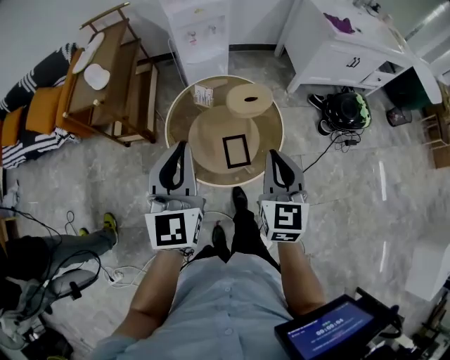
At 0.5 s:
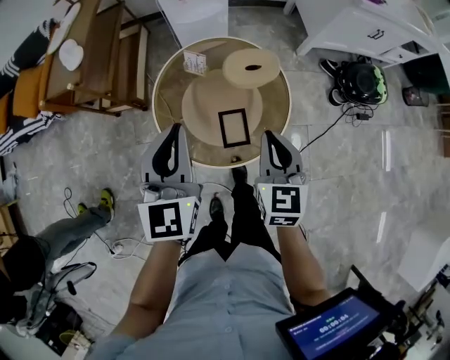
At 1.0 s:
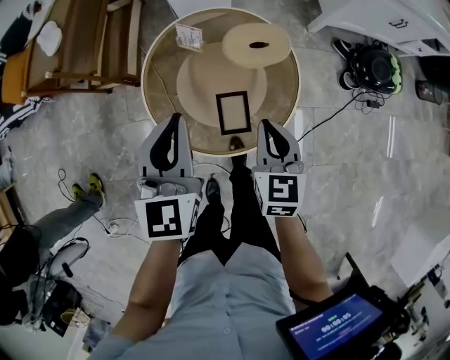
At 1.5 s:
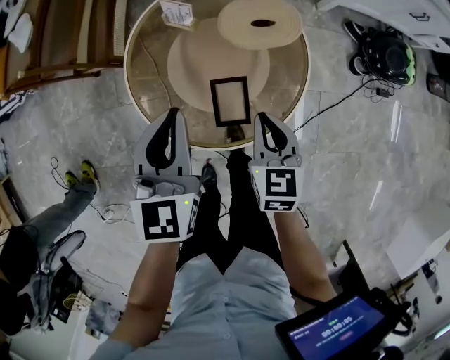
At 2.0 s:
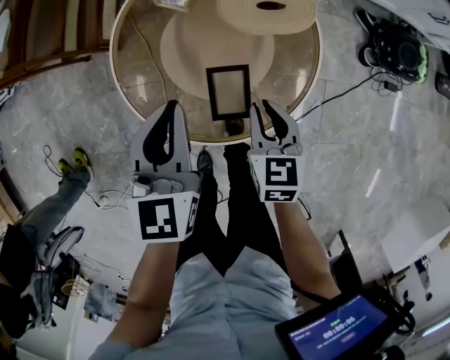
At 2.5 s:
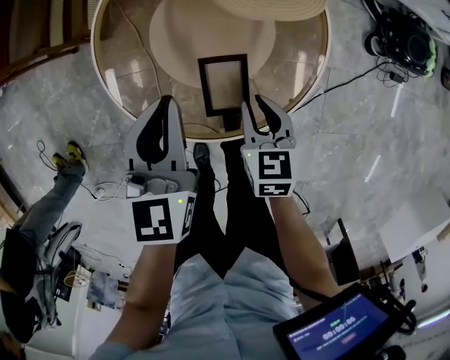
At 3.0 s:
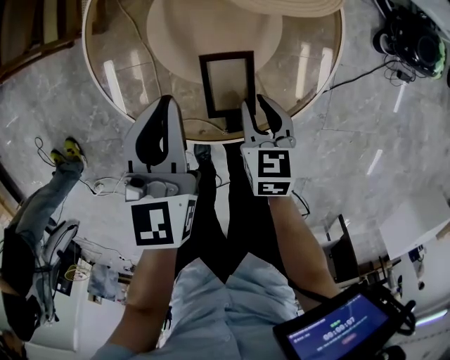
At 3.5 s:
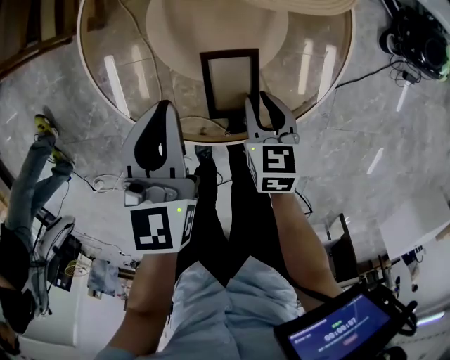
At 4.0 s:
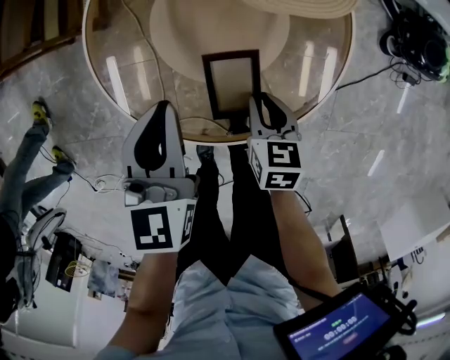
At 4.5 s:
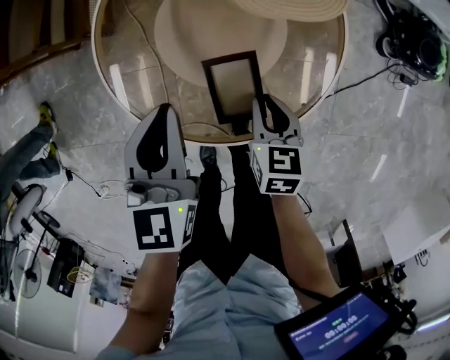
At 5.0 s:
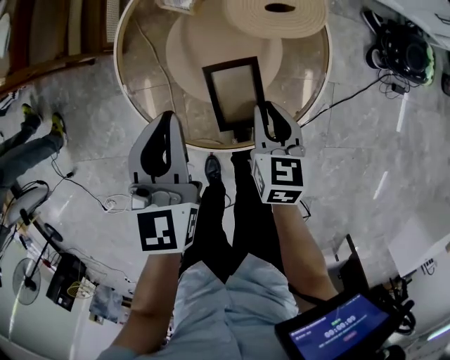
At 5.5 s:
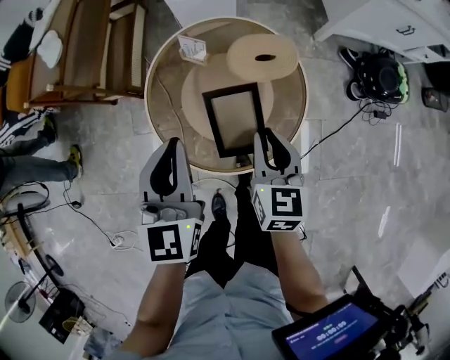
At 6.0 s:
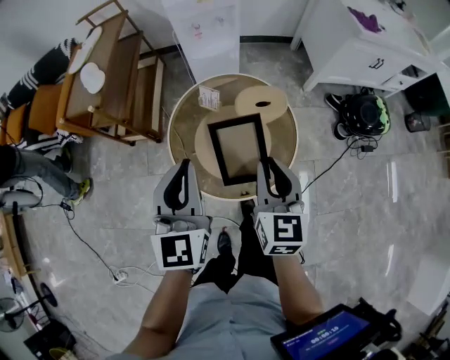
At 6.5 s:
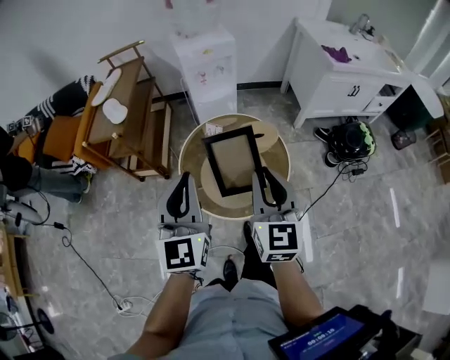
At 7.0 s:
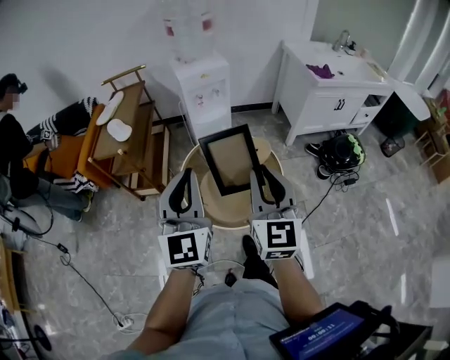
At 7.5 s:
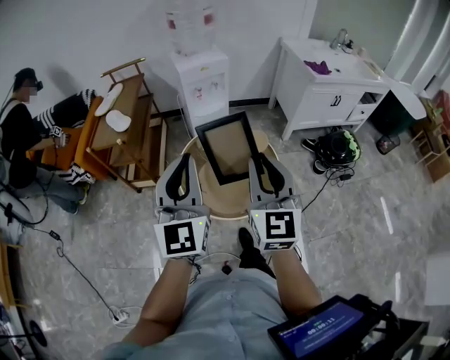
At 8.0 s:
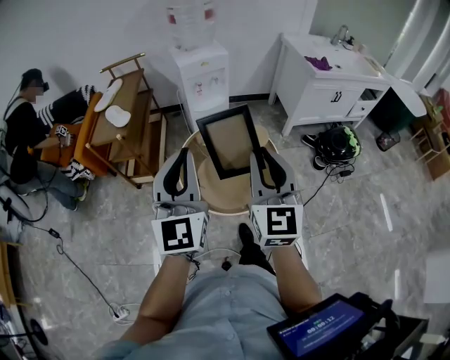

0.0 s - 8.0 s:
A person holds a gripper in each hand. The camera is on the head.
0.0 s - 2.0 s: The left gripper moves downward and forward, some 35 cm, and swivels roughly 30 degrees. The right gripper goes some 35 cm downward, and changes its angle by about 30 degrees.
2.0 s - 4.0 s: Both grippers move downward, approximately 10 cm.
4.0 s - 6.0 s: The two grippers go roughly 40 cm upward. The right gripper tilts its fingers about 30 degrees upward, while the left gripper rotates about 30 degrees.
6.0 s - 8.0 s: The two grippers go about 25 cm upward and backward. The right gripper changes its angle by about 30 degrees, while the left gripper swivels approximately 20 degrees.

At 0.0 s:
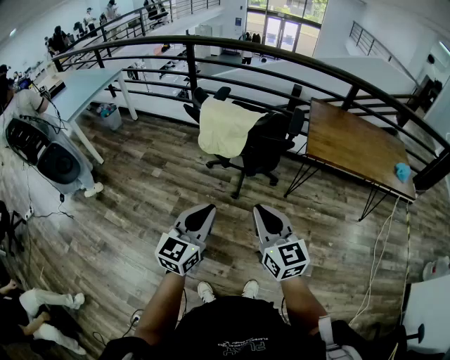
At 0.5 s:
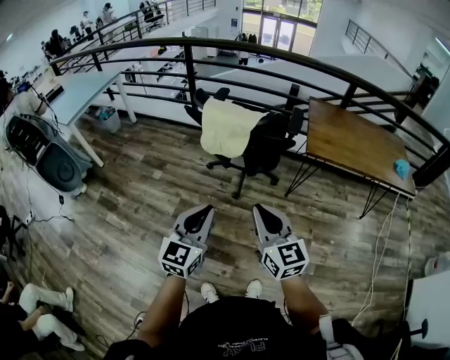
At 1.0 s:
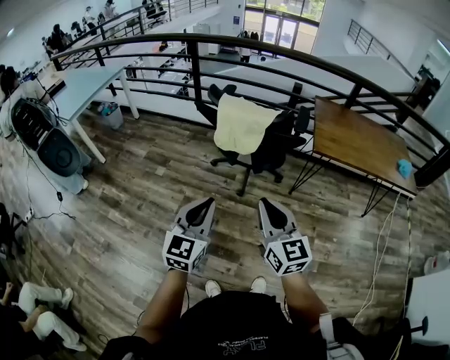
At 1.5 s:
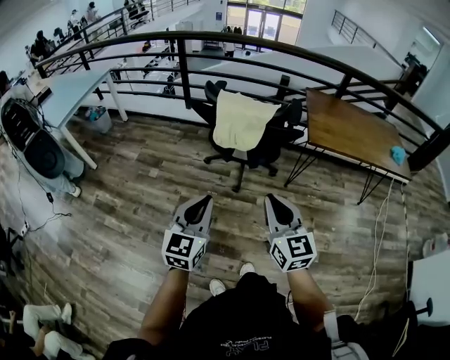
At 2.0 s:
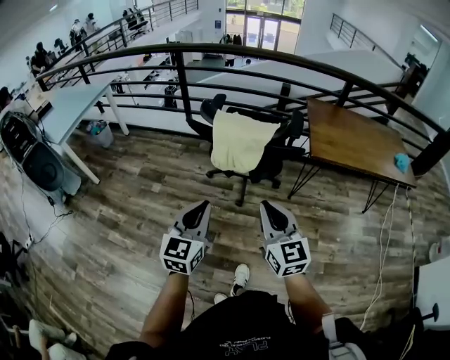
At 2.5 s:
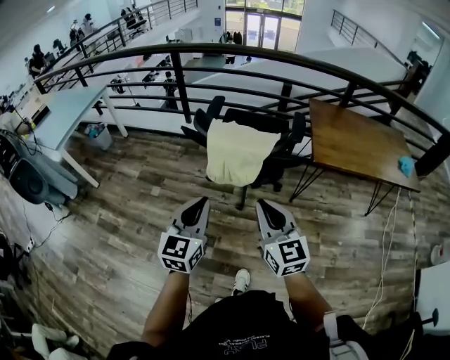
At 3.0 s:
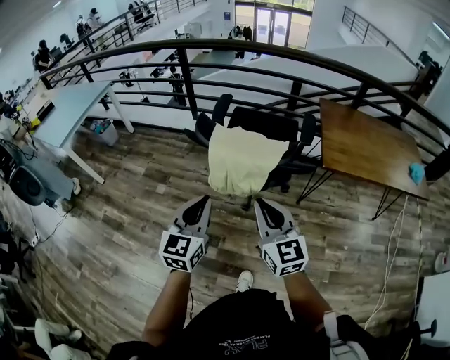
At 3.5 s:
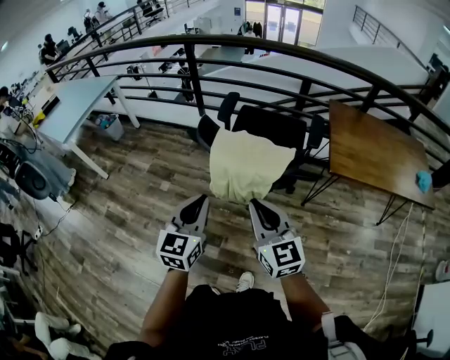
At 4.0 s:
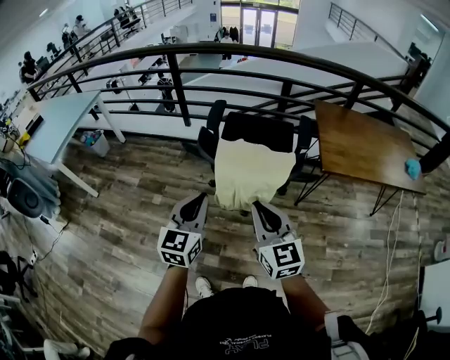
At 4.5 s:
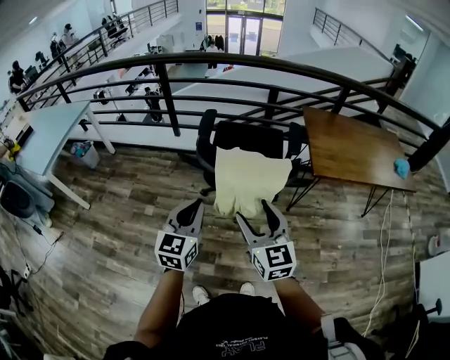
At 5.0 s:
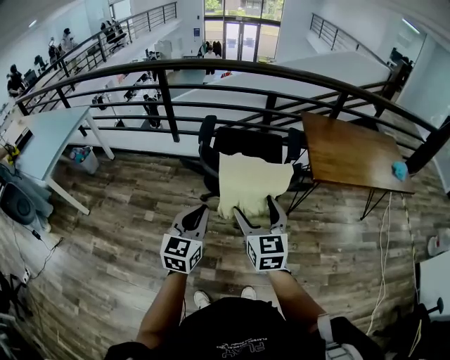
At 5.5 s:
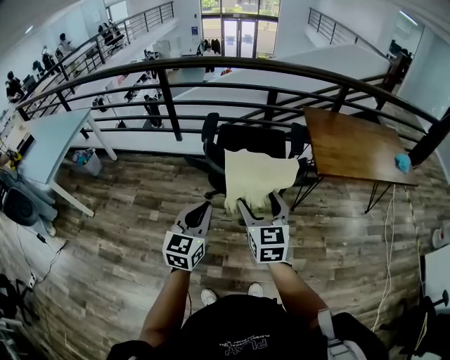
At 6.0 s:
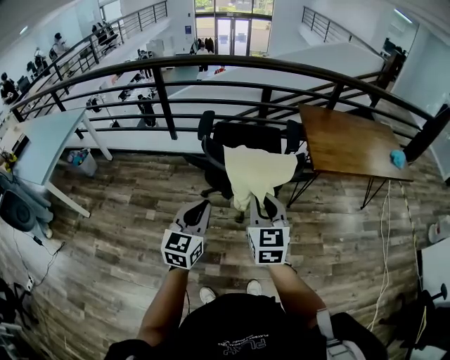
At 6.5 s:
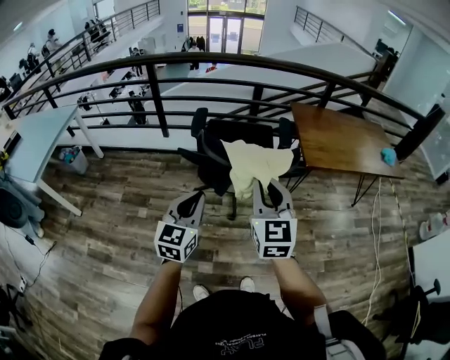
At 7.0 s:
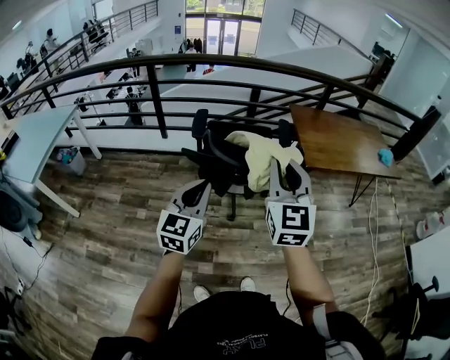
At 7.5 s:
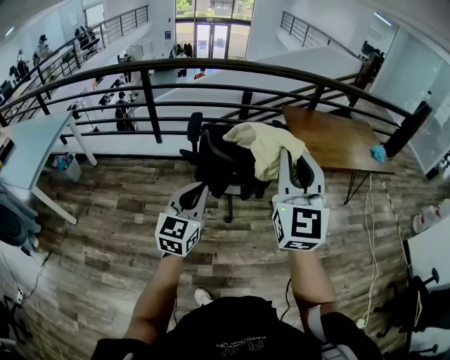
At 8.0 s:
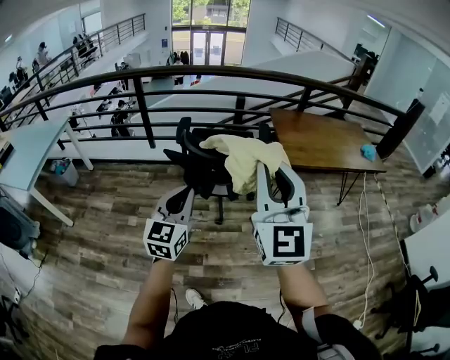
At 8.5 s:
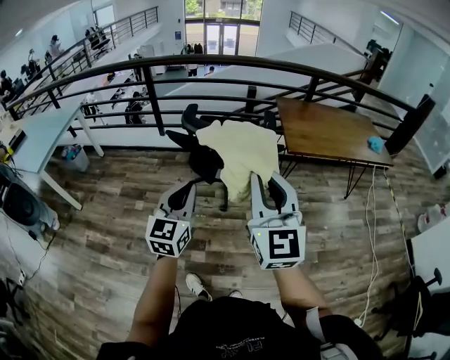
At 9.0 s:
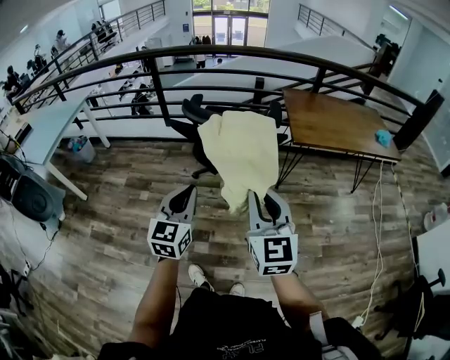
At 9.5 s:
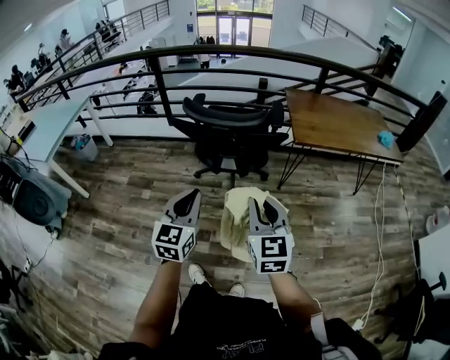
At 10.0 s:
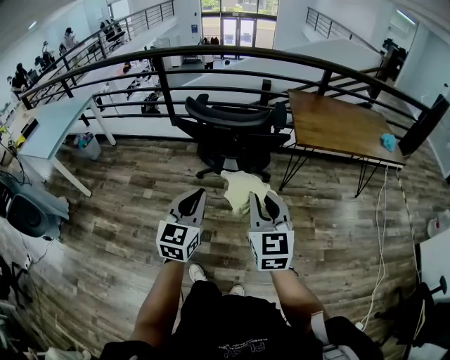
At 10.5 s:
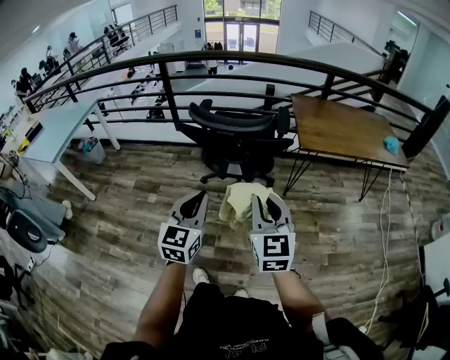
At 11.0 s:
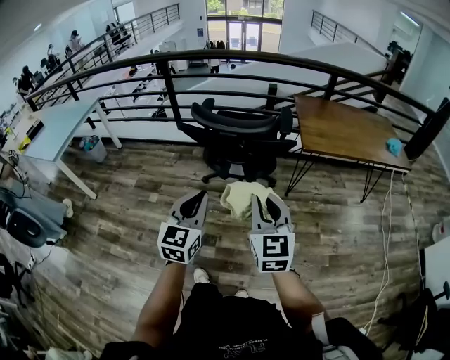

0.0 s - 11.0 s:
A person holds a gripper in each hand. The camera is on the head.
0.0 s - 2.0 s: The grippers both shift to the left and forward by roughly 10 cm.
2.0 s - 3.5 s: The two grippers go some 15 cm forward.
3.5 s - 5.5 s: The right gripper travels forward by some 5 cm, turns by roughly 30 degrees, and opens. The left gripper ends up some 5 cm from where it was.
5.5 s - 7.5 s: The right gripper goes approximately 20 cm upward, changes its angle by approximately 30 degrees, and closes up; the left gripper is displaced upward by approximately 5 cm.
7.5 s - 9.0 s: The left gripper heads backward and to the right, covering roughly 15 cm, while the right gripper travels backward, downward and to the right by some 25 cm, and rotates roughly 20 degrees.
9.0 s - 11.0 s: The grippers make only small movements.

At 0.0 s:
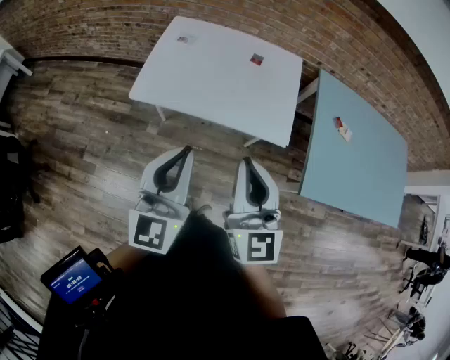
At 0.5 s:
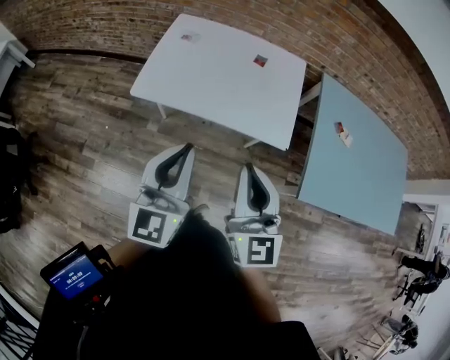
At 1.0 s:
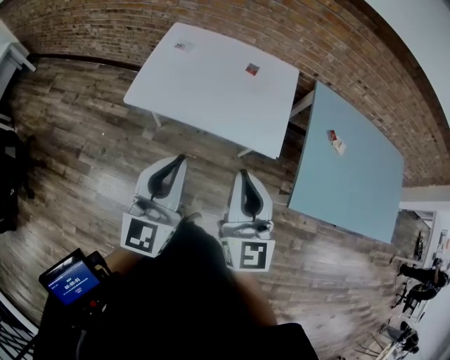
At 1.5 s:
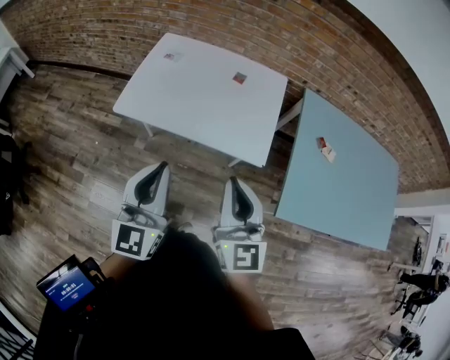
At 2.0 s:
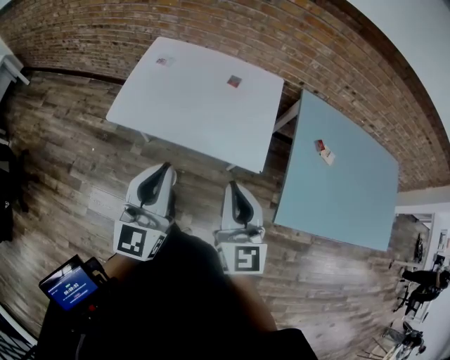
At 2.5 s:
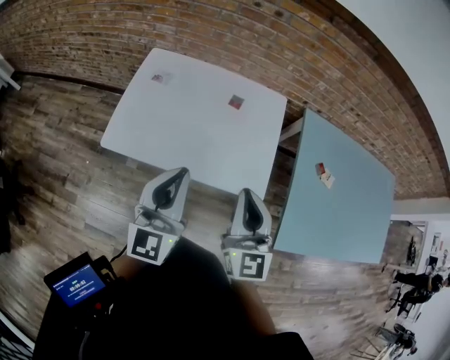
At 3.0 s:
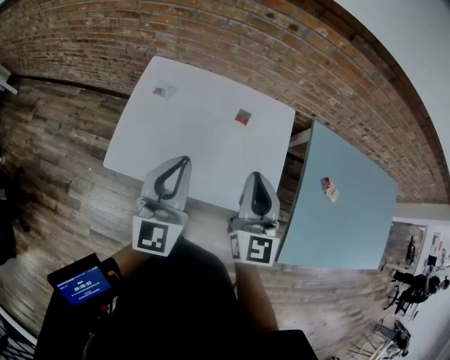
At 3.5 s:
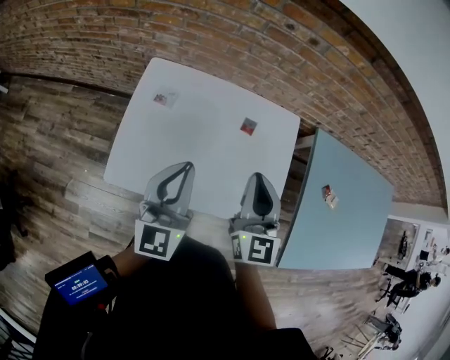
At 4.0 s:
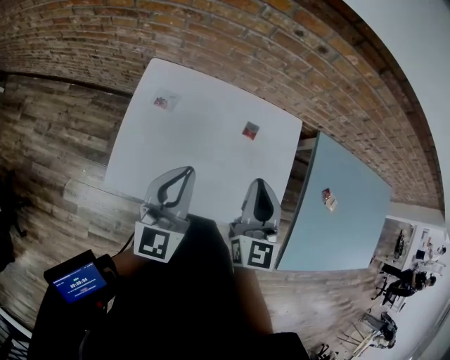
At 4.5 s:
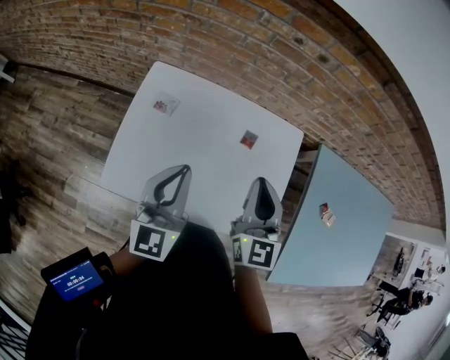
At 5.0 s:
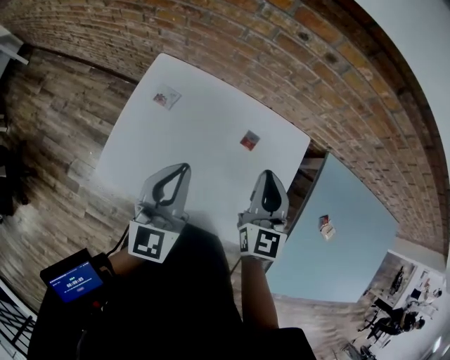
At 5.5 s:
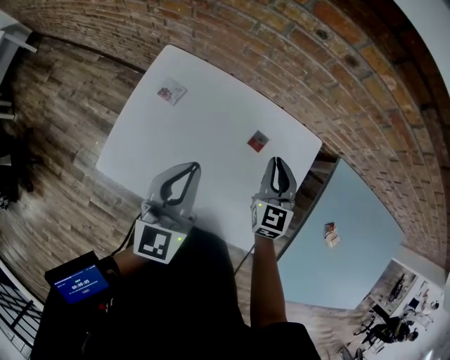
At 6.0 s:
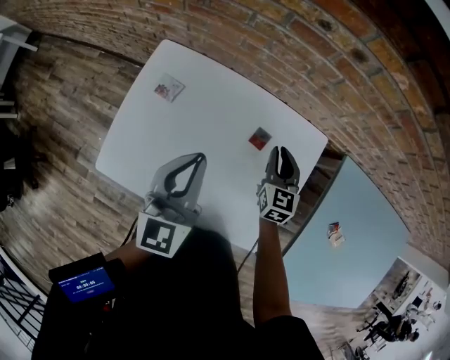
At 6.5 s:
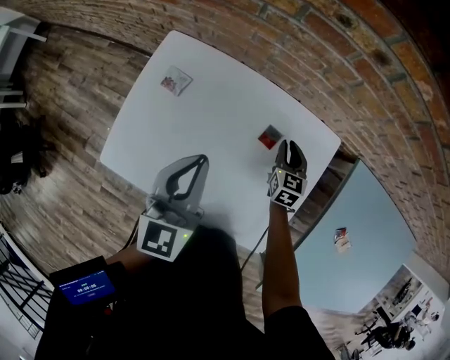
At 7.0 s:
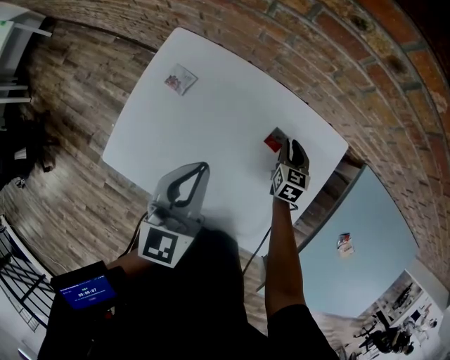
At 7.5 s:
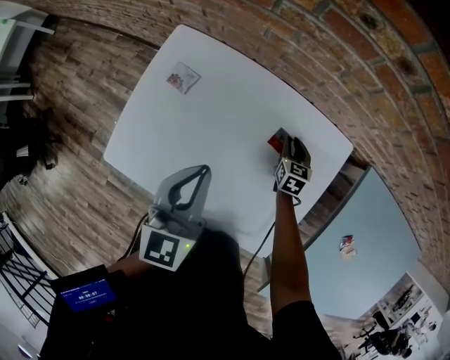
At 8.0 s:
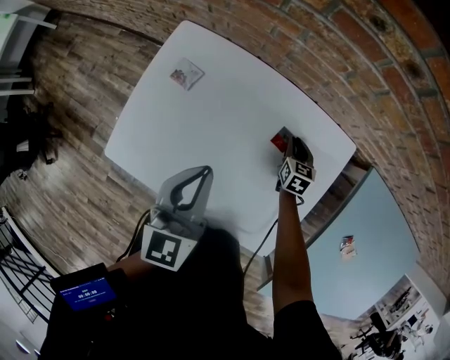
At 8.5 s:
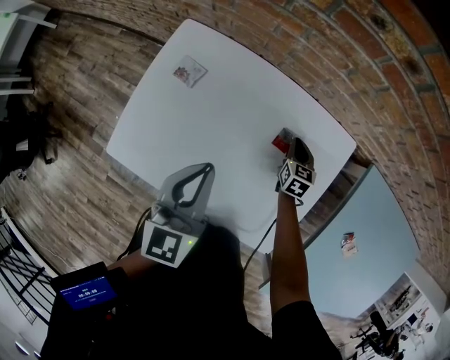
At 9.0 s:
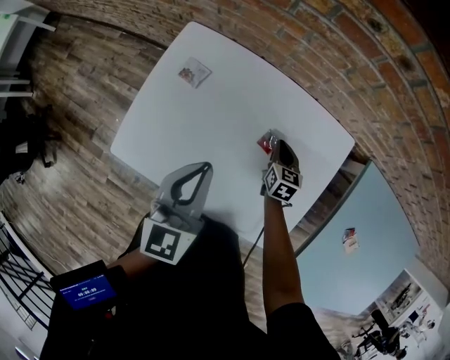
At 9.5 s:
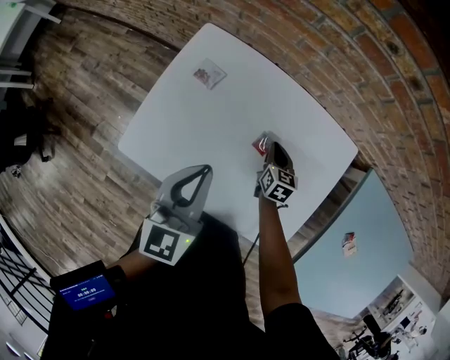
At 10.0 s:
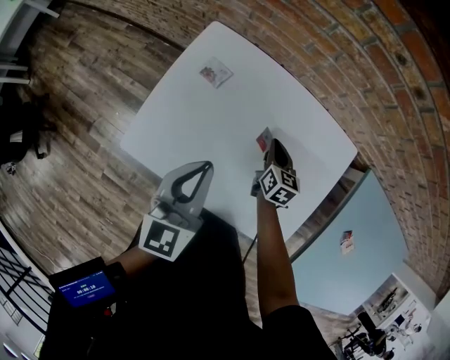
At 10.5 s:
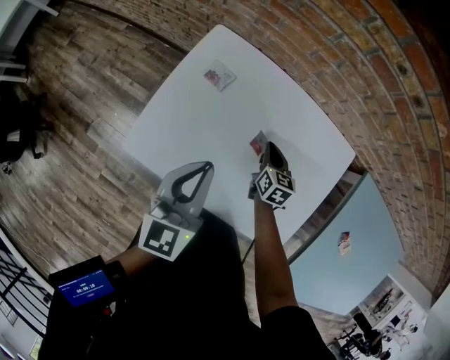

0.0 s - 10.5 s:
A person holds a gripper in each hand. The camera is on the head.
0.0 s - 2.0 s: The two grippers go about 10 cm to the right and forward.
2.0 s - 4.0 s: Both grippers travel together forward, about 30 cm.
4.0 s - 6.5 s: The left gripper moves forward, to the right and downward, about 15 cm, while the right gripper goes about 40 cm downward, forward and to the right, and changes its angle by approximately 30 degrees.
6.5 s - 8.5 s: The right gripper goes about 5 cm downward.
8.5 s - 10.5 s: The right gripper is displaced to the left by roughly 15 cm. The left gripper goes about 10 cm to the left.
